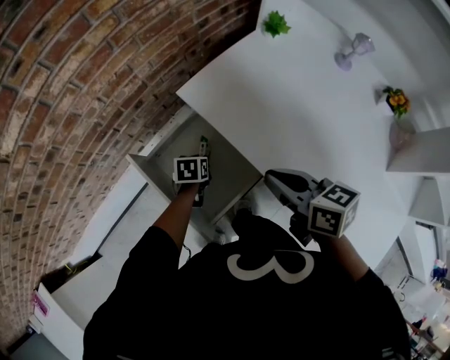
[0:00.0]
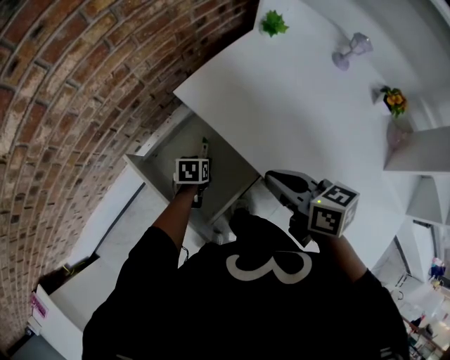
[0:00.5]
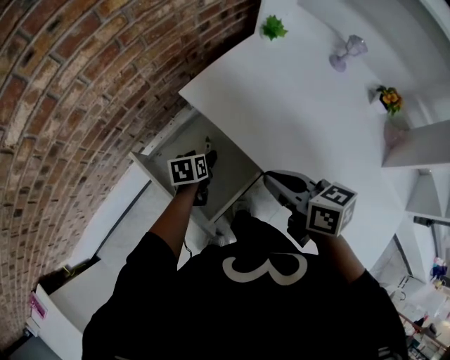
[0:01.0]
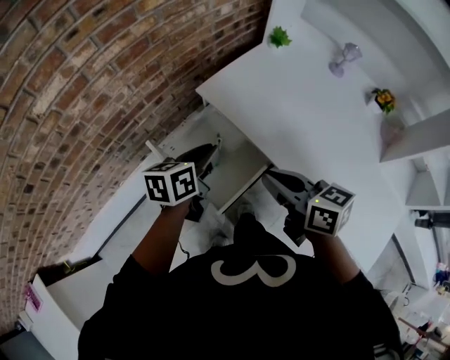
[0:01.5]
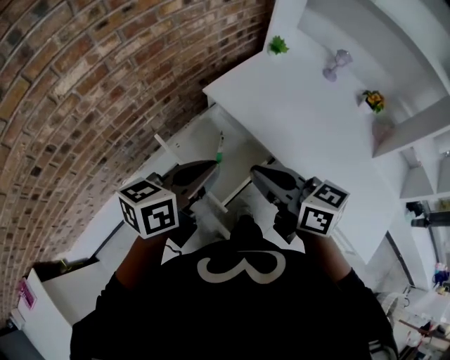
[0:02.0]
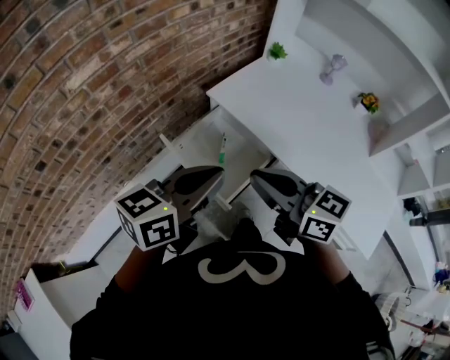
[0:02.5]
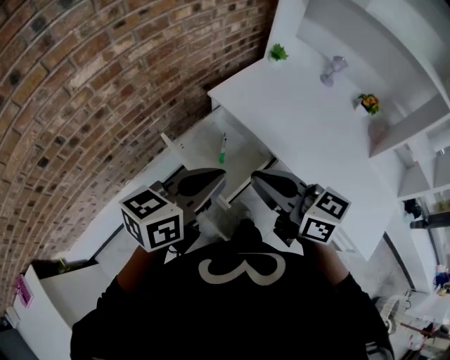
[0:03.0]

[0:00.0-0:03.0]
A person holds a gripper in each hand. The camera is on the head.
0:00.0 to 0:01.5: The right gripper goes roughly 10 cm backward, to the left and upward. Meanwhile the left gripper goes about 25 cm upward, tilts its fingers about 30 degrees upward, and opens, then closes again.
0:01.5 to 0:03.0: The left gripper is displaced backward and upward by roughly 25 cm, and rotates roughly 30 degrees, while the right gripper travels upward, backward and to the left by roughly 15 cm, and changes its angle by approximately 20 degrees.

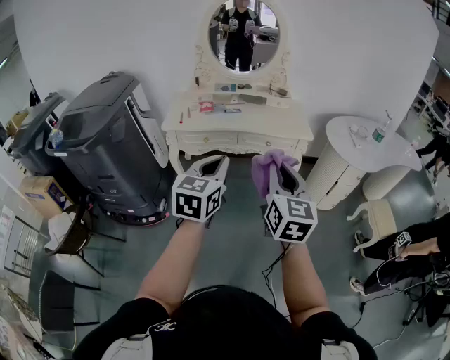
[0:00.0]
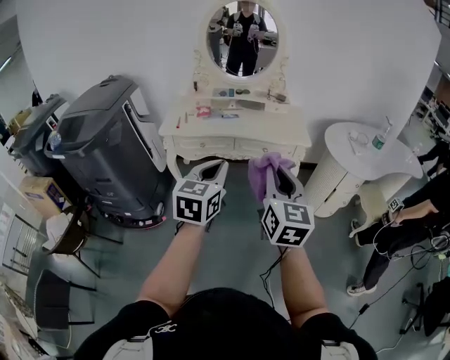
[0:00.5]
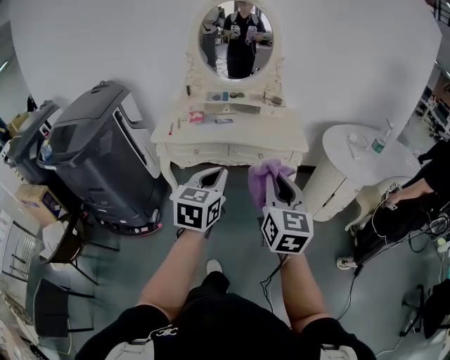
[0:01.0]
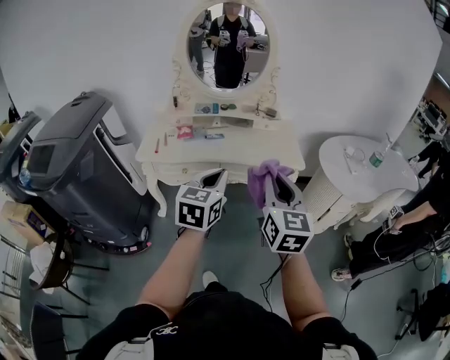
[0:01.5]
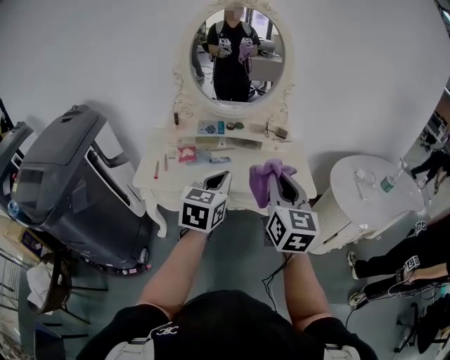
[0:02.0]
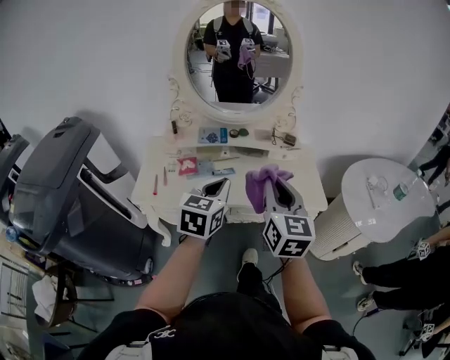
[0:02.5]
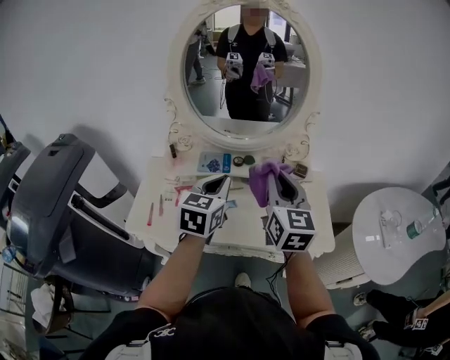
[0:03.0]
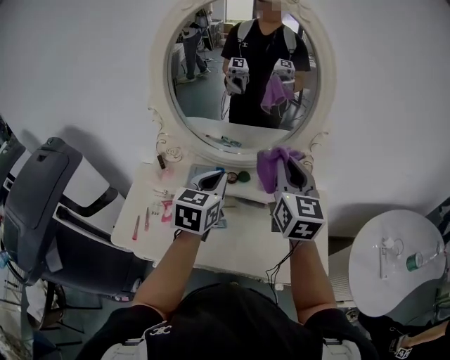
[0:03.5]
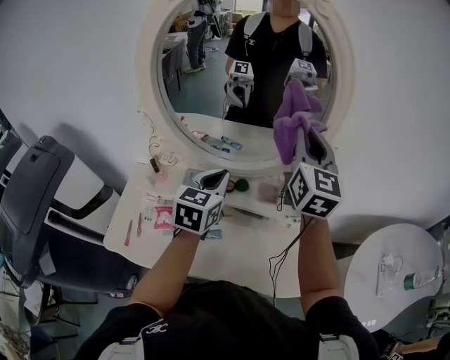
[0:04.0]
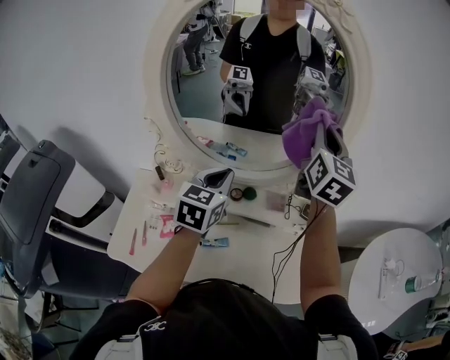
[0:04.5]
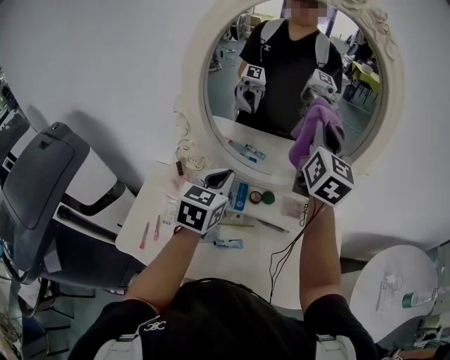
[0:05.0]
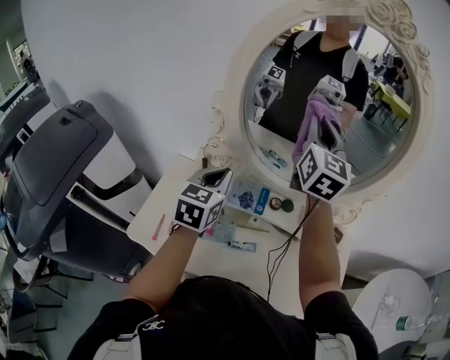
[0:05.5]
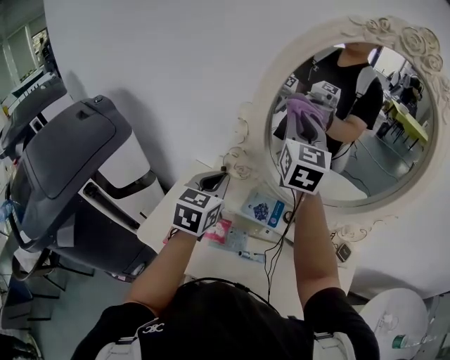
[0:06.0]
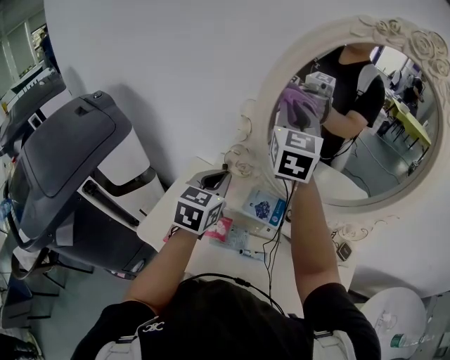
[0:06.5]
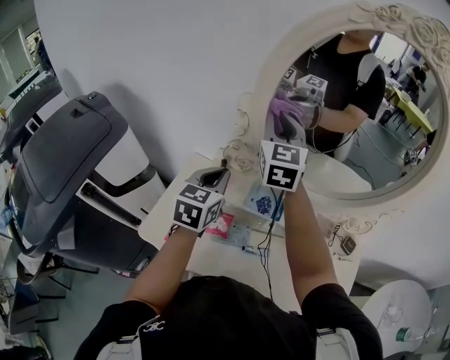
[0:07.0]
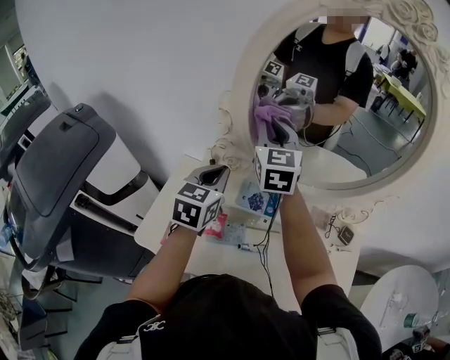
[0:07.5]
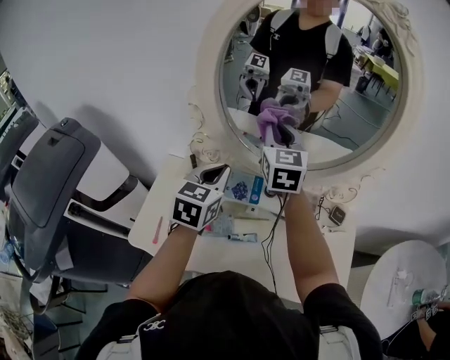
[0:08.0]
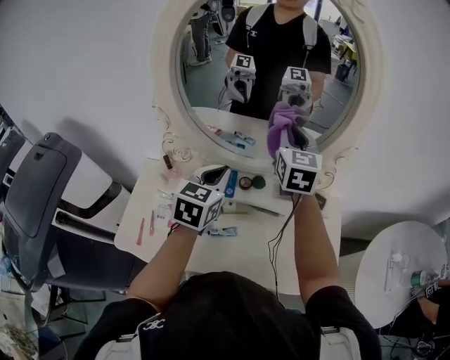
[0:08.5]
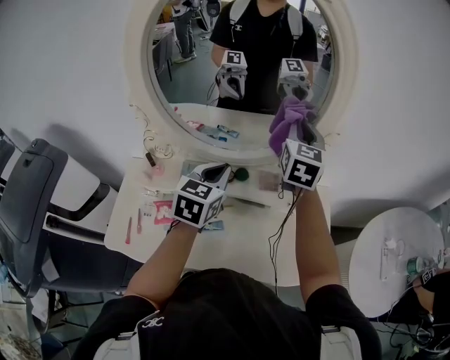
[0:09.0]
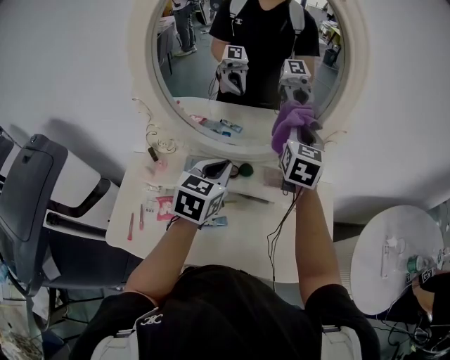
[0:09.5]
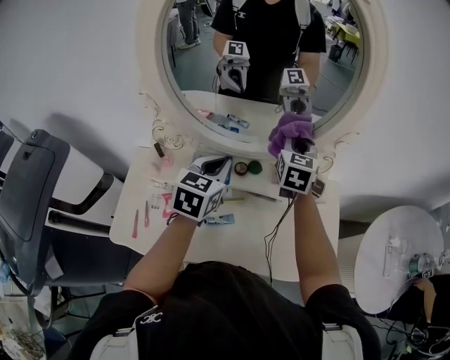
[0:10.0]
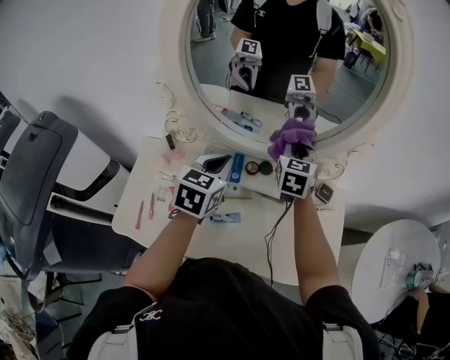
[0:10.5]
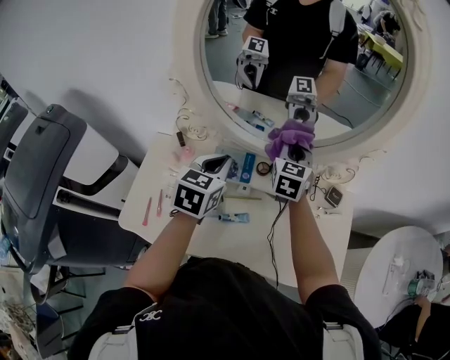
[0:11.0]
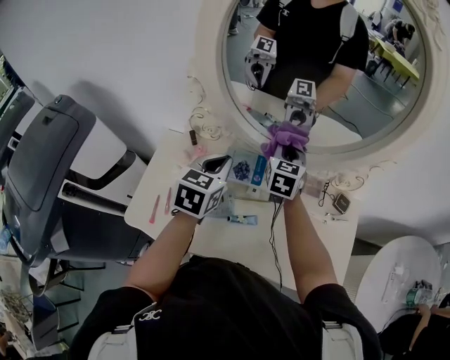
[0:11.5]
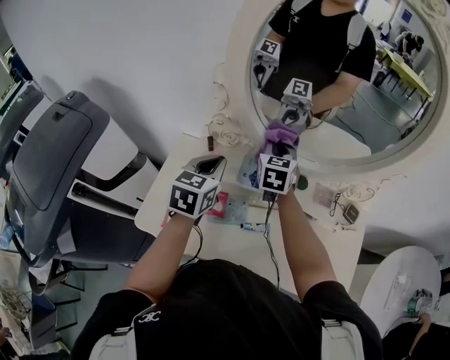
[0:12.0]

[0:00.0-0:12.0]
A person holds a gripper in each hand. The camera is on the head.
0:00.0 to 0:02.0: Both grippers travel together forward, roughly 35 cm.
0:02.0 to 0:04.0: The pair of grippers is taken forward, some 50 cm.
0:04.0 to 0:06.0: Both grippers move to the left, roughly 30 cm.
0:06.0 to 0:08.0: The right gripper goes about 15 cm downward and to the right; the left gripper goes approximately 10 cm to the right.
0:08.0 to 0:10.0: The right gripper shifts approximately 20 cm to the right and downward, and turns by roughly 20 degrees, while the left gripper travels to the right by approximately 10 cm.
0:10.0 to 0:12.0: Both grippers travel together to the left, about 20 cm.

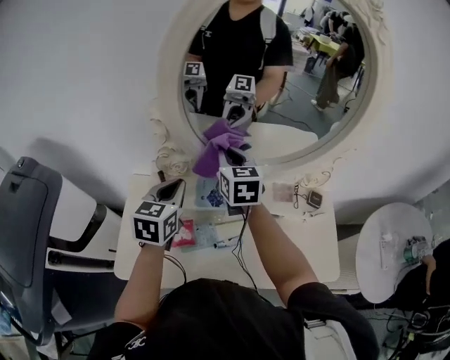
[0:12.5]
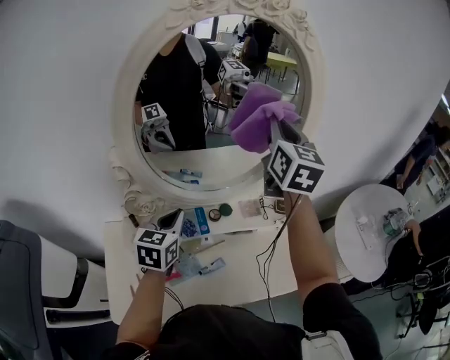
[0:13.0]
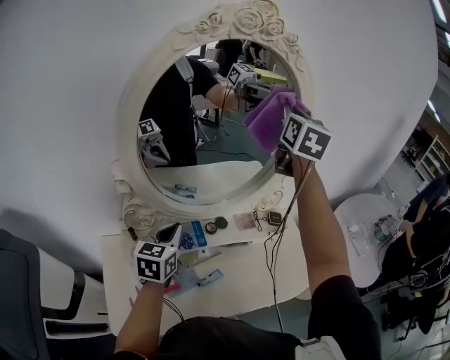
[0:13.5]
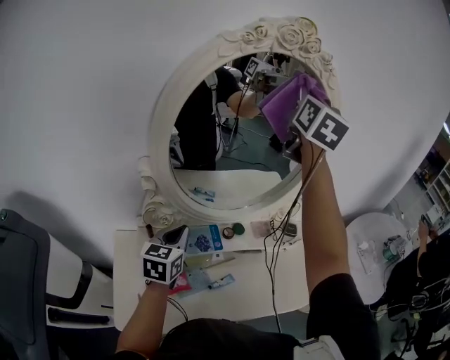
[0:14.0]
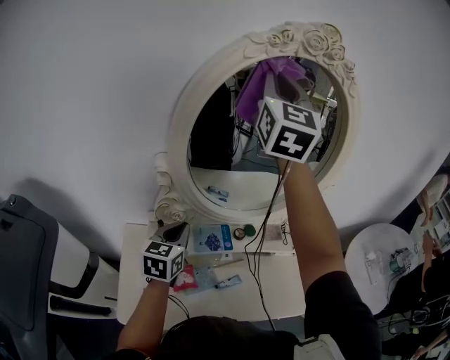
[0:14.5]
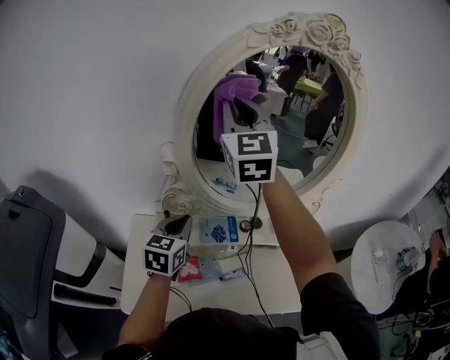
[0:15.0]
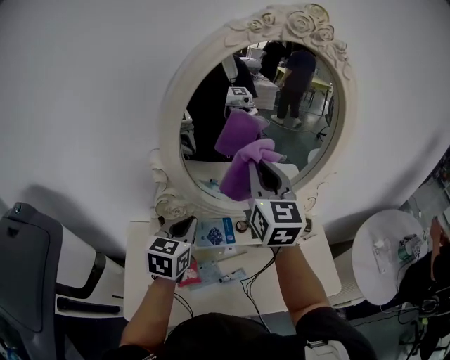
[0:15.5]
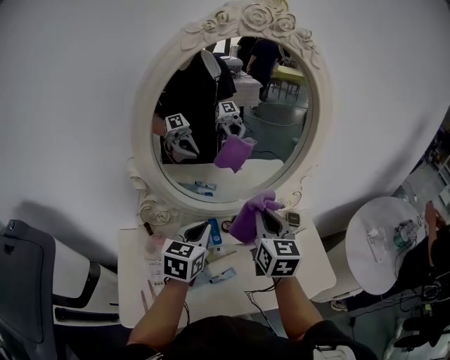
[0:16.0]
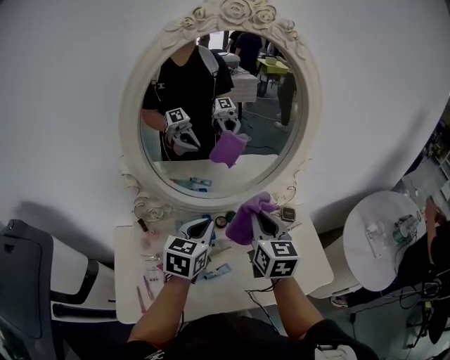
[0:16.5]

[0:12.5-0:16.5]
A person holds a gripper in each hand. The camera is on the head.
0:12.5 to 0:14.5: The right gripper moves upward, some 40 cm, and tilts its fingers roughly 40 degrees upward.
0:14.5 to 0:16.5: The left gripper travels to the right by some 15 cm. Meanwhile the right gripper travels downward and to the right by approximately 40 cm, and tips its fingers downward by roughly 30 degrees.

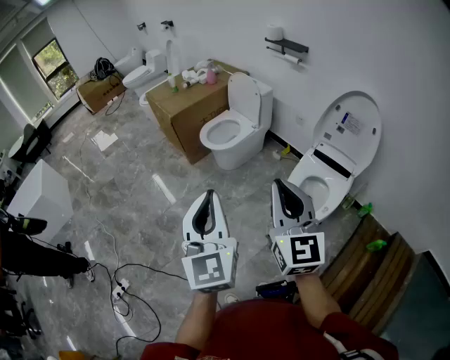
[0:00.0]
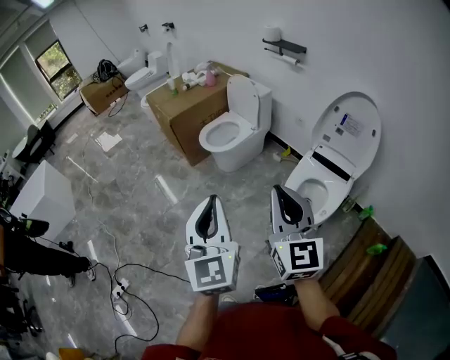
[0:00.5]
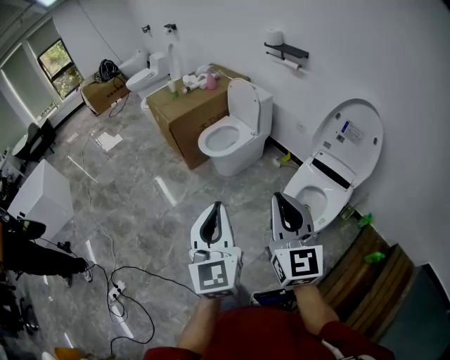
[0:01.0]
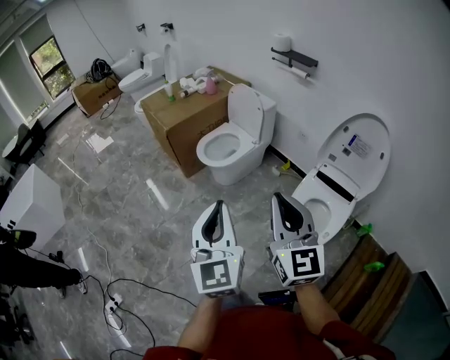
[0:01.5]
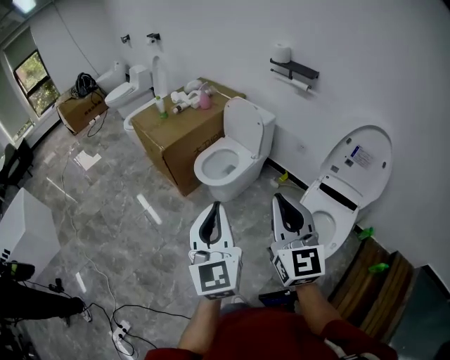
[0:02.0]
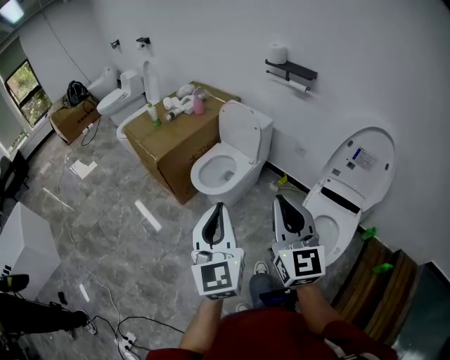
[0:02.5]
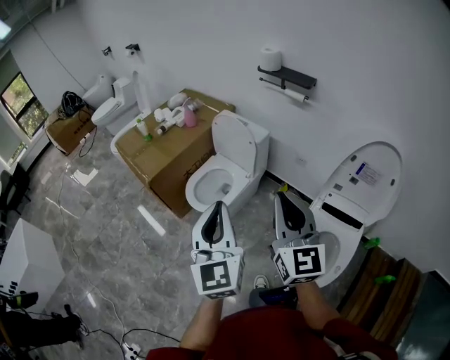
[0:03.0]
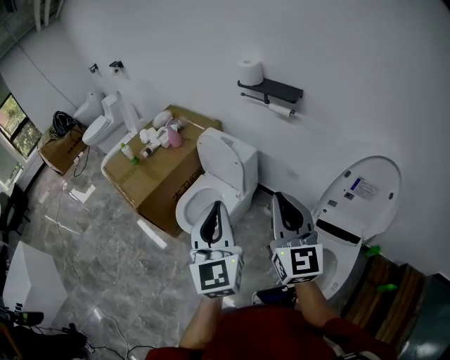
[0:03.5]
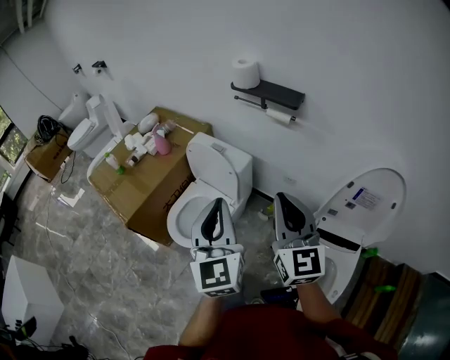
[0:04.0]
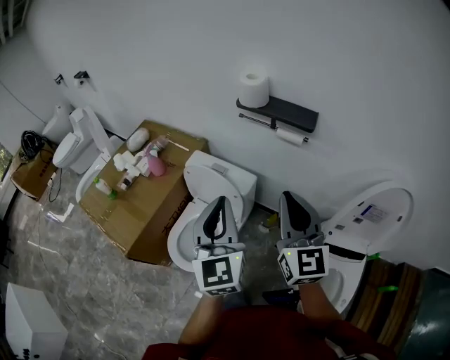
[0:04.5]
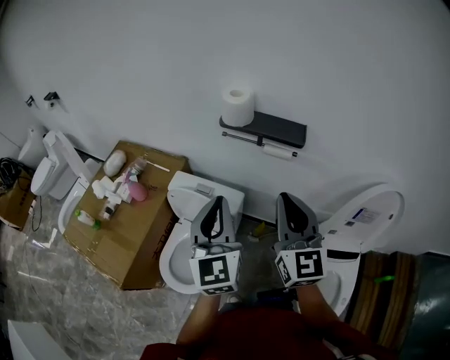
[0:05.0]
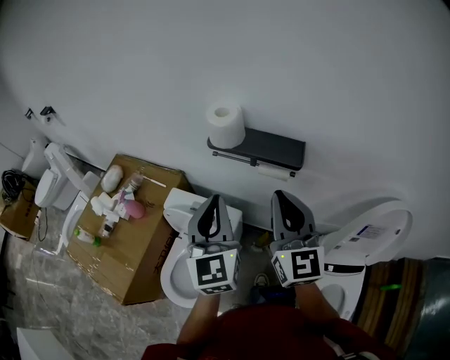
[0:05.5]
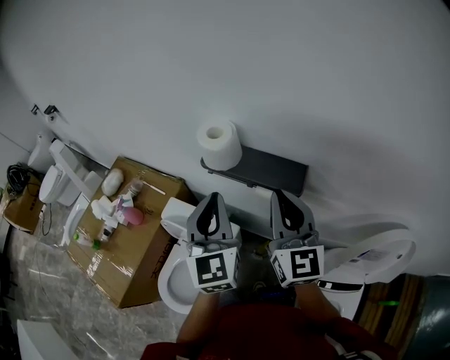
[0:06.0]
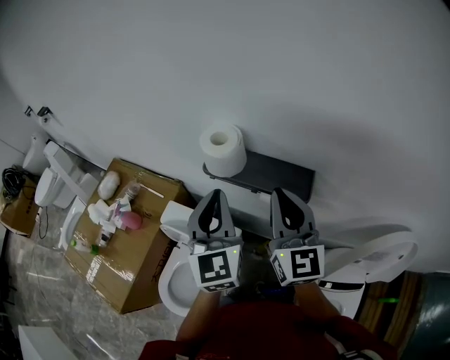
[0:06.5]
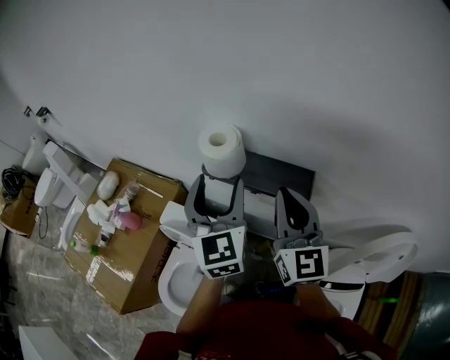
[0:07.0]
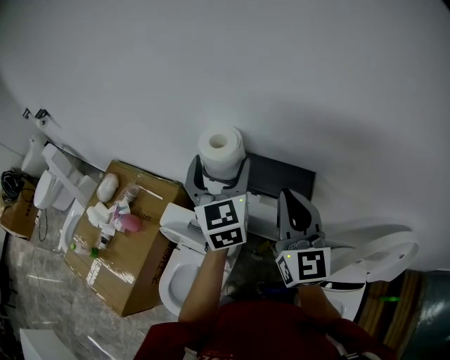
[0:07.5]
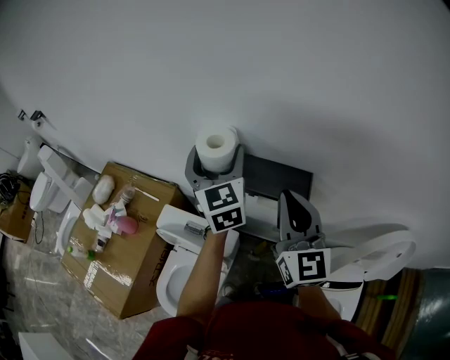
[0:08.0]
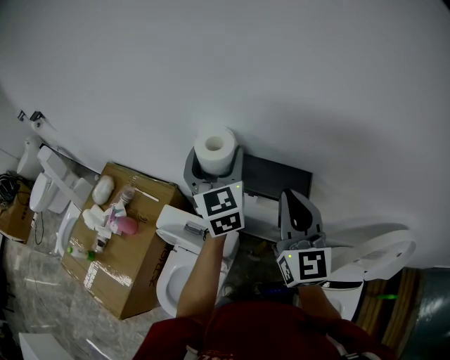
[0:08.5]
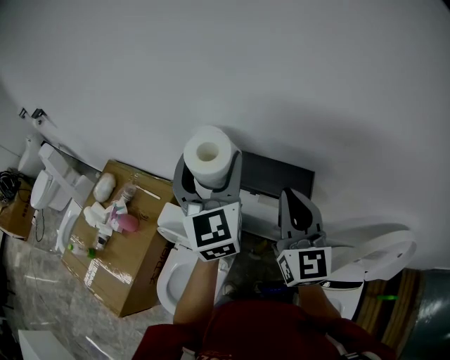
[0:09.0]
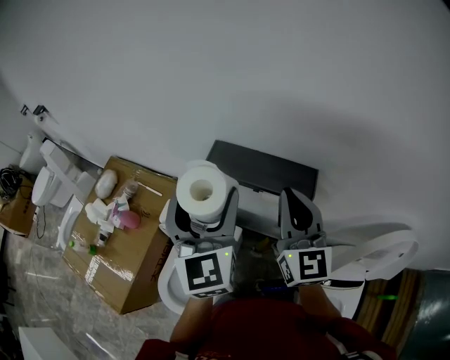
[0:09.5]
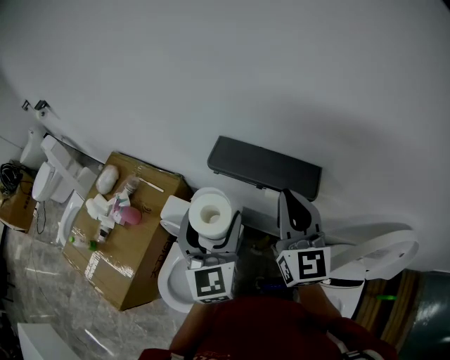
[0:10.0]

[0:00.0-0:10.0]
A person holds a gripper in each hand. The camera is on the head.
0:00.0 to 0:02.0: Both grippers move forward, roughly 25 cm.
0:02.0 to 0:04.0: The pair of grippers is taken forward, some 50 cm.
0:04.0 to 0:06.0: Both grippers move forward, some 40 cm.
0:06.0 to 0:08.0: The left gripper travels forward by about 15 cm, and opens up.
0:08.0 to 0:10.0: The left gripper moves backward, approximately 15 cm.
